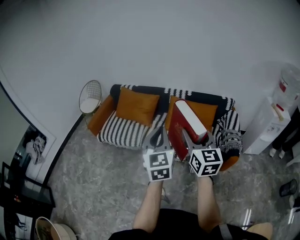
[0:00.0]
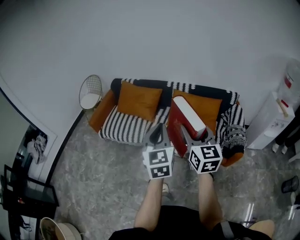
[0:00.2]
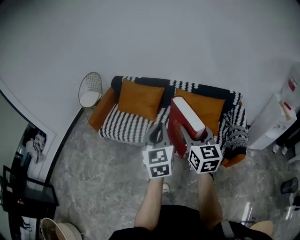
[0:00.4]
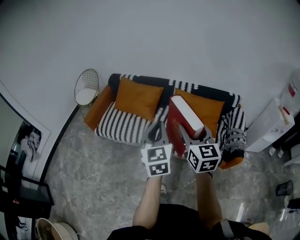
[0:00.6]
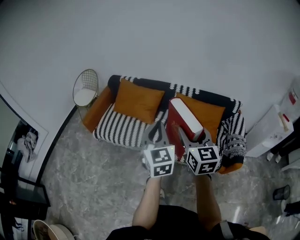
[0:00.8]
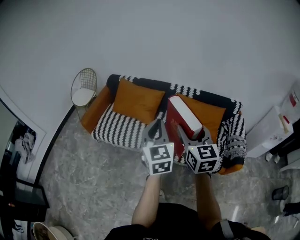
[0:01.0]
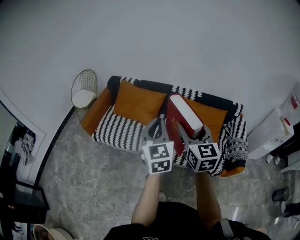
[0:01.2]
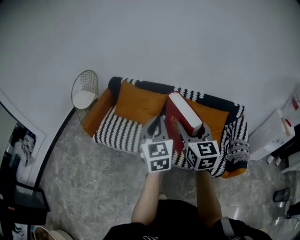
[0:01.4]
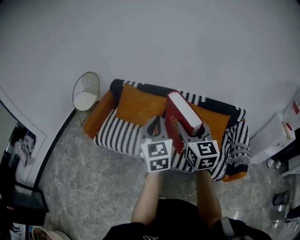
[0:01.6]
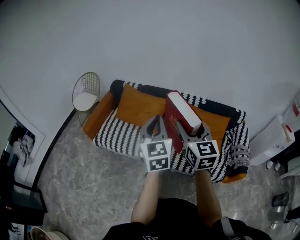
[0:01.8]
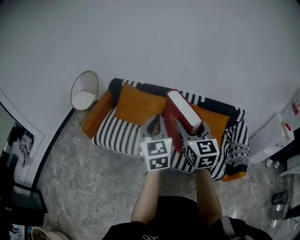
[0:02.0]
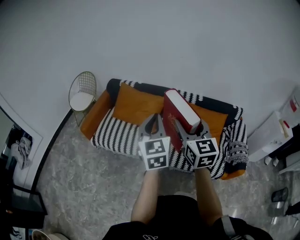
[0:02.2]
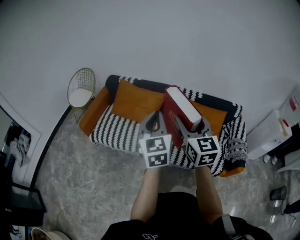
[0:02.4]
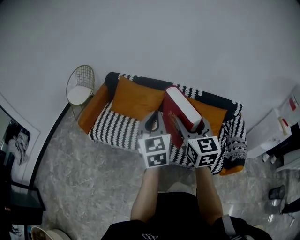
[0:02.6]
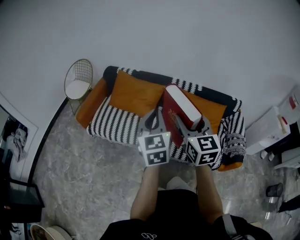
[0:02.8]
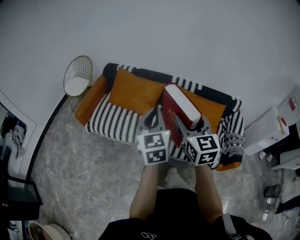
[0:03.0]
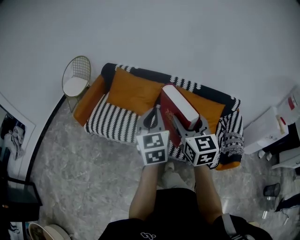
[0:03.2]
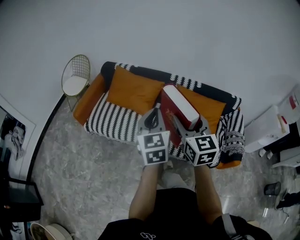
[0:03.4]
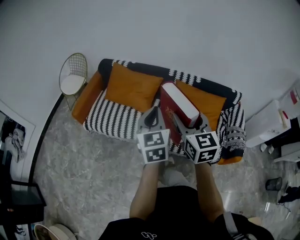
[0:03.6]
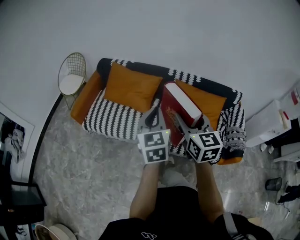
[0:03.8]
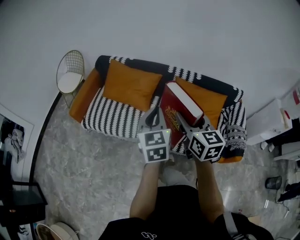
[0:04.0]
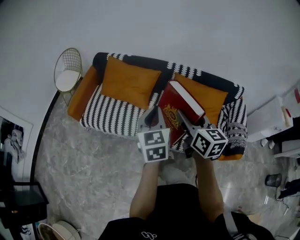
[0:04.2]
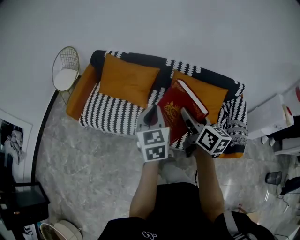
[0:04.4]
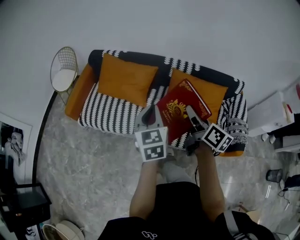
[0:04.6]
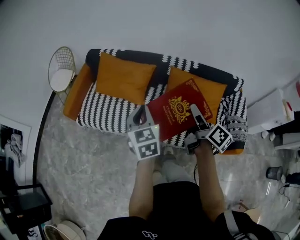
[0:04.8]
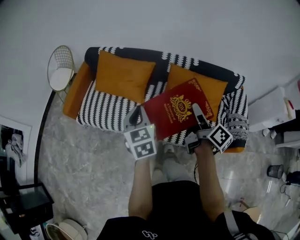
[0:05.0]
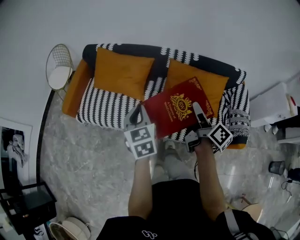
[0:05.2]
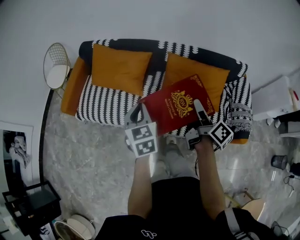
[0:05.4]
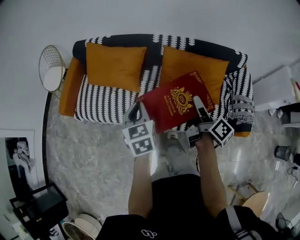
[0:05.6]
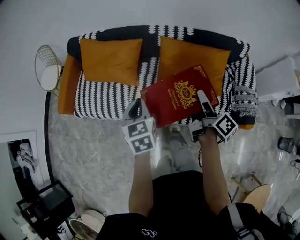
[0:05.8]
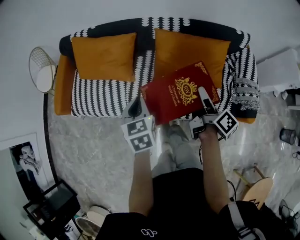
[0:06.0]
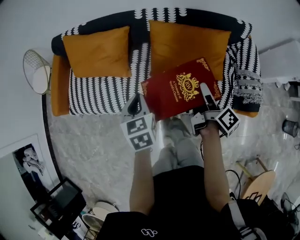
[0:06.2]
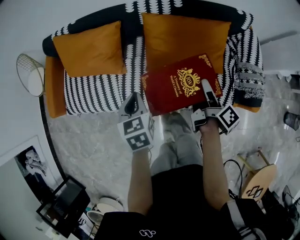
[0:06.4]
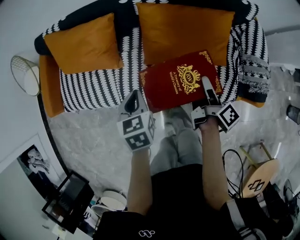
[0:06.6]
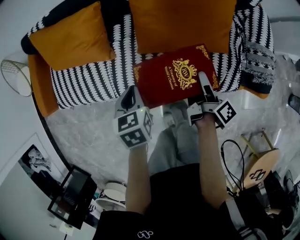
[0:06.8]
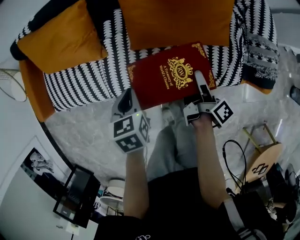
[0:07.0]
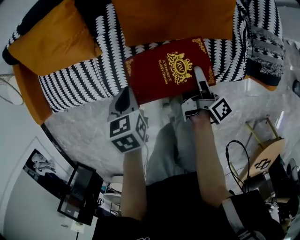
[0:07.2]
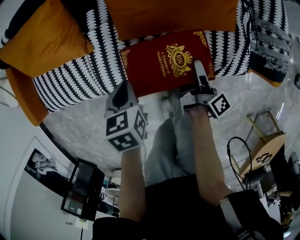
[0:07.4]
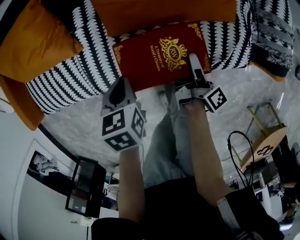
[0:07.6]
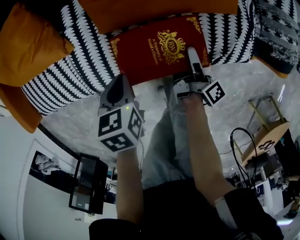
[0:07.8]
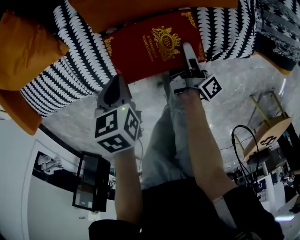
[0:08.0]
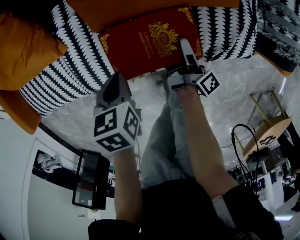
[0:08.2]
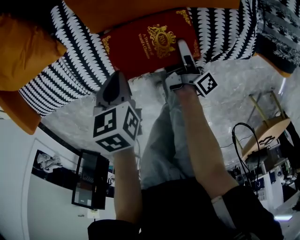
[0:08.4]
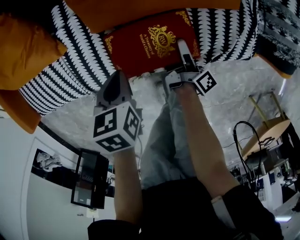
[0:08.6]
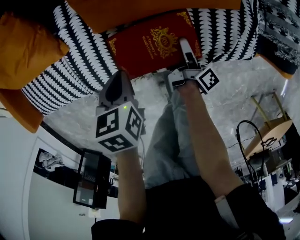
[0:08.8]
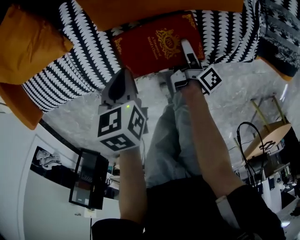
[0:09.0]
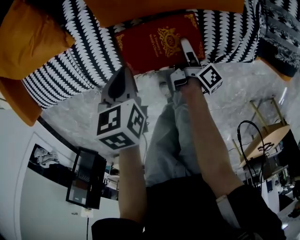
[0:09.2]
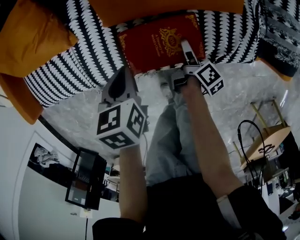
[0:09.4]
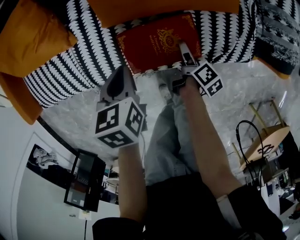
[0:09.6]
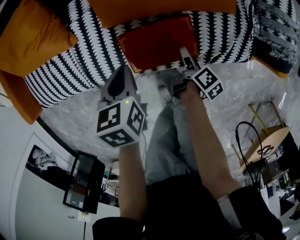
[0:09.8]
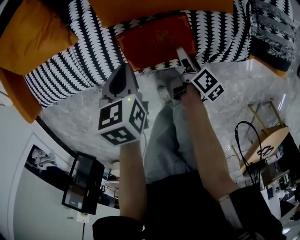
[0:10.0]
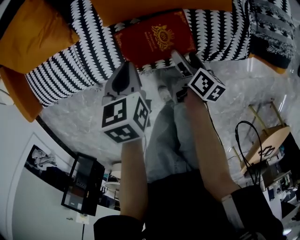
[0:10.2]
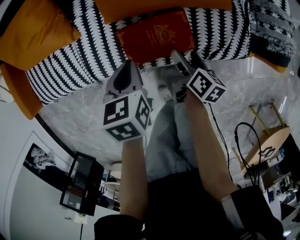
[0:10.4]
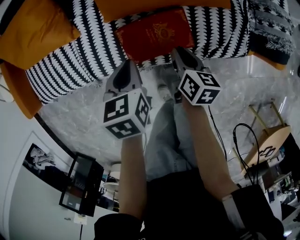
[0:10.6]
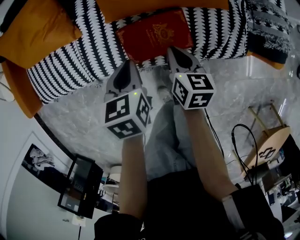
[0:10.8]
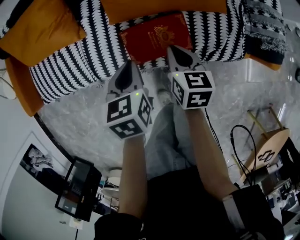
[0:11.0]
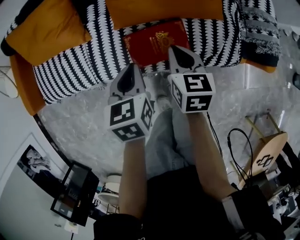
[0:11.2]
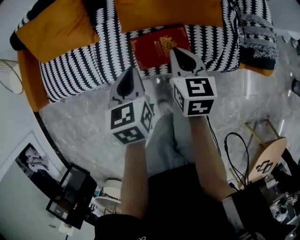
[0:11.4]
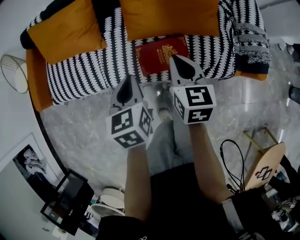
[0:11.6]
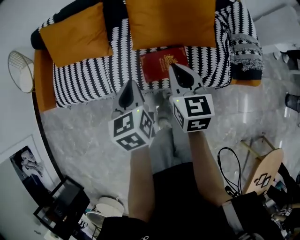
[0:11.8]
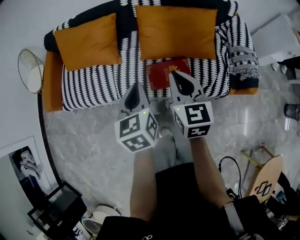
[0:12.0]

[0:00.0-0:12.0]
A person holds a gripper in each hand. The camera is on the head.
0:00.0 to 0:01.6: Both grippers travel together forward and to the left, approximately 30 cm.
0:01.6 to 0:03.0: The grippers make only small movements.
0:03.0 to 0:04.4: The left gripper shifts some 10 cm downward, forward and to the right; the right gripper heads to the right, downward and forward, covering some 15 cm, and turns by some 40 degrees.
0:04.4 to 0:06.0: The left gripper moves downward, roughly 15 cm, and swivels approximately 20 degrees; the right gripper goes roughly 25 cm downward and to the right, and twists approximately 40 degrees clockwise, seen from behind.
0:06.0 to 0:07.6: The two grippers go approximately 30 cm downward. The right gripper swivels roughly 30 degrees. Meanwhile the left gripper rotates roughly 30 degrees.
0:07.6 to 0:09.0: The right gripper is displaced downward by roughly 10 cm. The left gripper changes place by roughly 5 cm.
0:09.0 to 0:10.4: The right gripper moves upward and backward, roughly 10 cm, and changes its angle by roughly 40 degrees.
0:10.4 to 0:12.0: The two grippers go approximately 35 cm upward. The left gripper changes its angle by approximately 30 degrees. Meanwhile the right gripper rolls counterclockwise, seen from behind, by about 50 degrees, and closes.

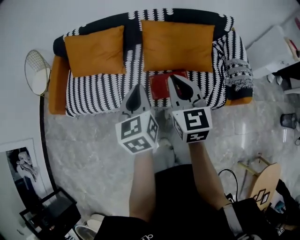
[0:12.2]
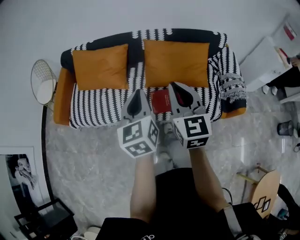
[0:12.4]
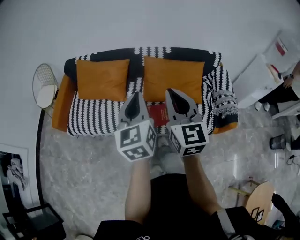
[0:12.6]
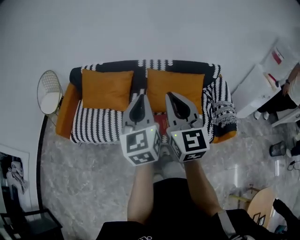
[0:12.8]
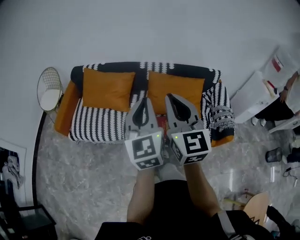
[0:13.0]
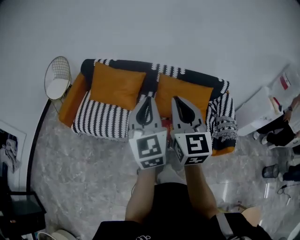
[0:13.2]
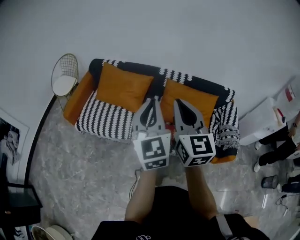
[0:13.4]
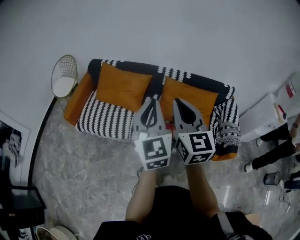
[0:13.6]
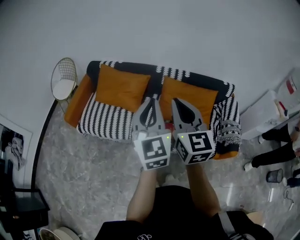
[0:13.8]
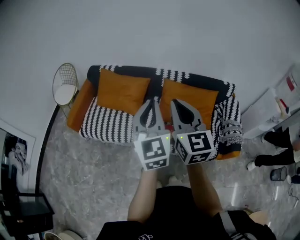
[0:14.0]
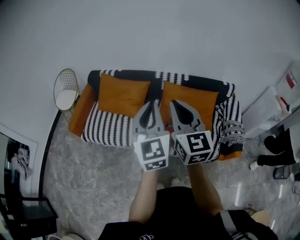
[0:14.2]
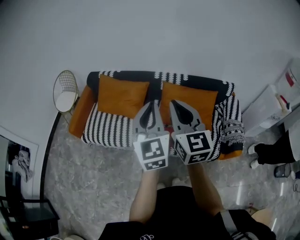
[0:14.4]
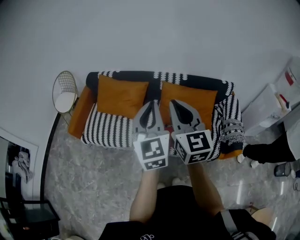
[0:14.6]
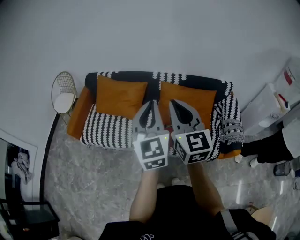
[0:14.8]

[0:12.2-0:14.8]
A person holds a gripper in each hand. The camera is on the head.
0:12.2 to 0:13.4: Both grippers move upward, approximately 20 cm. The left gripper rotates some 30 degrees.
0:13.4 to 0:14.8: The left gripper shifts some 5 cm to the right.

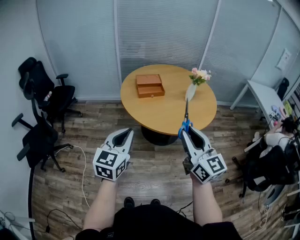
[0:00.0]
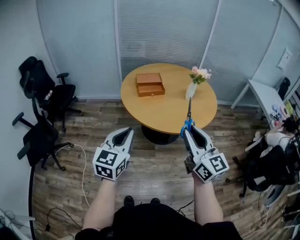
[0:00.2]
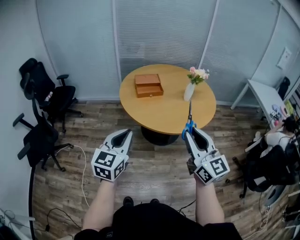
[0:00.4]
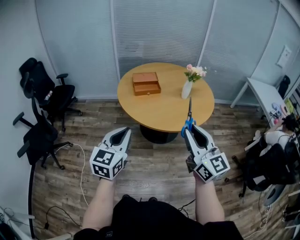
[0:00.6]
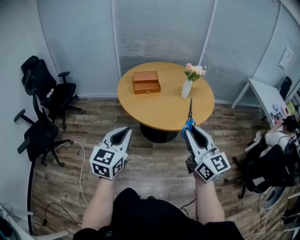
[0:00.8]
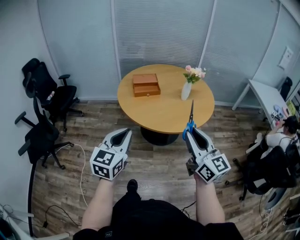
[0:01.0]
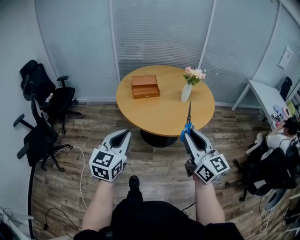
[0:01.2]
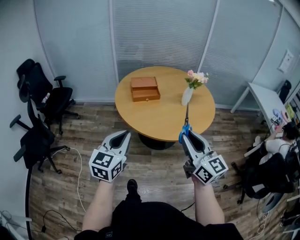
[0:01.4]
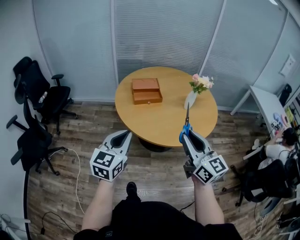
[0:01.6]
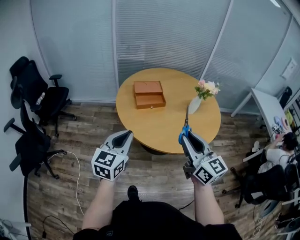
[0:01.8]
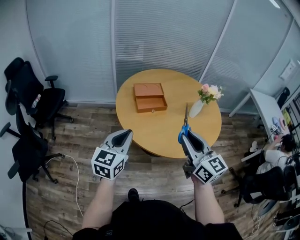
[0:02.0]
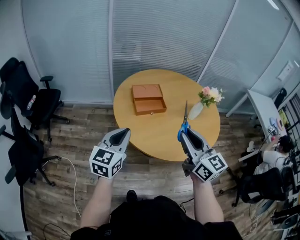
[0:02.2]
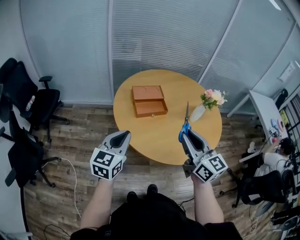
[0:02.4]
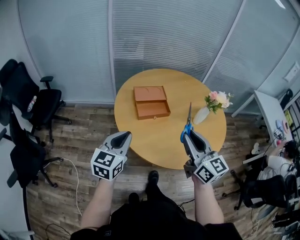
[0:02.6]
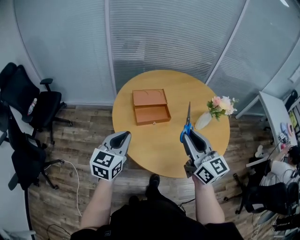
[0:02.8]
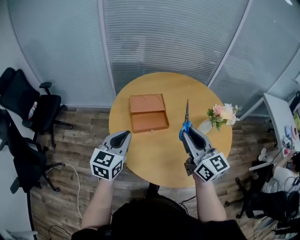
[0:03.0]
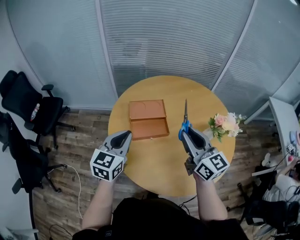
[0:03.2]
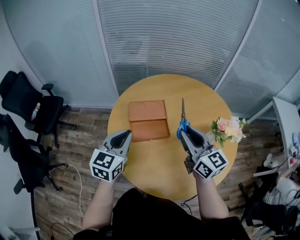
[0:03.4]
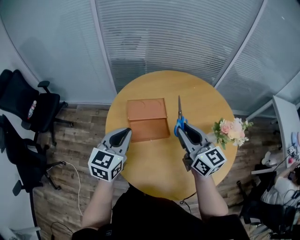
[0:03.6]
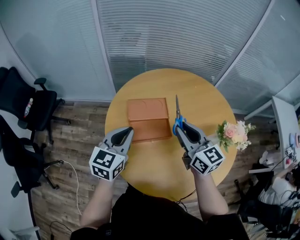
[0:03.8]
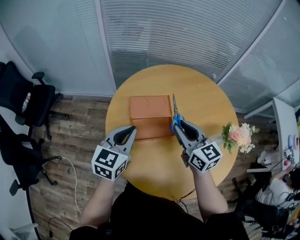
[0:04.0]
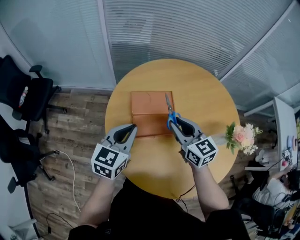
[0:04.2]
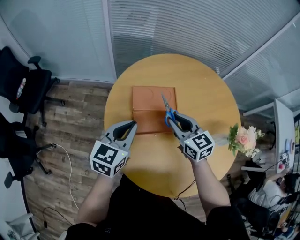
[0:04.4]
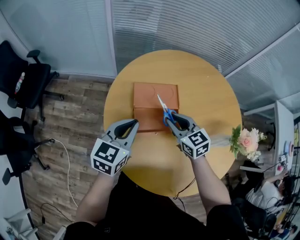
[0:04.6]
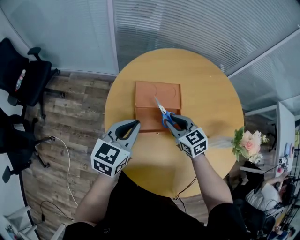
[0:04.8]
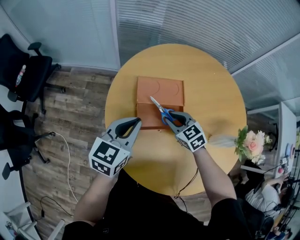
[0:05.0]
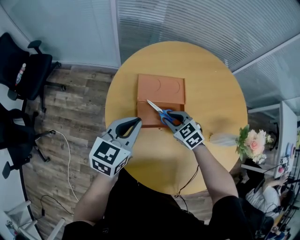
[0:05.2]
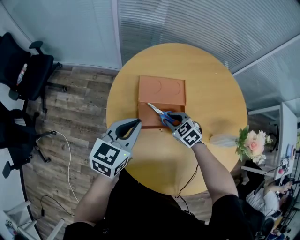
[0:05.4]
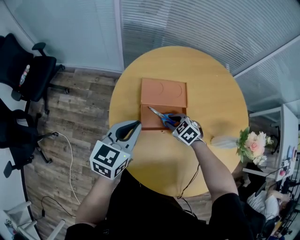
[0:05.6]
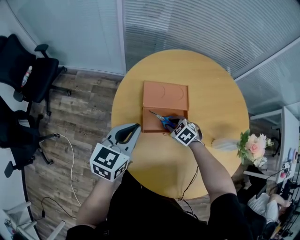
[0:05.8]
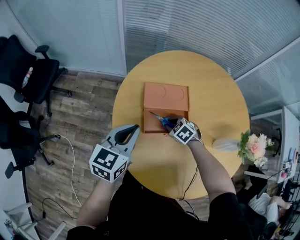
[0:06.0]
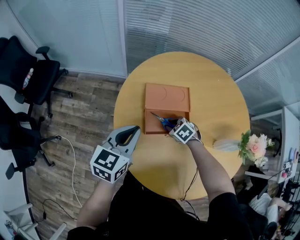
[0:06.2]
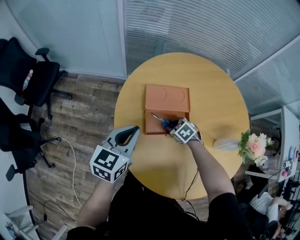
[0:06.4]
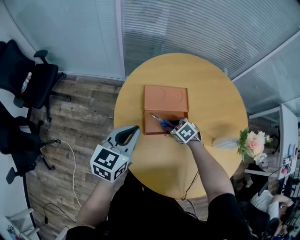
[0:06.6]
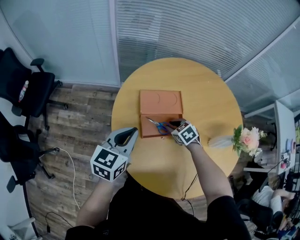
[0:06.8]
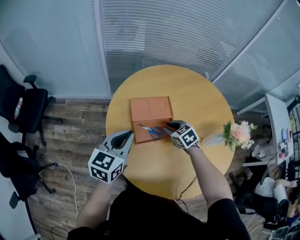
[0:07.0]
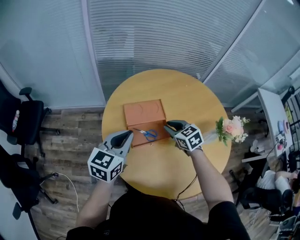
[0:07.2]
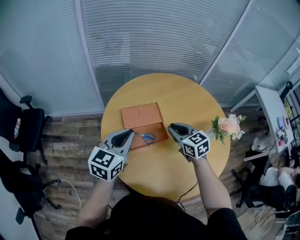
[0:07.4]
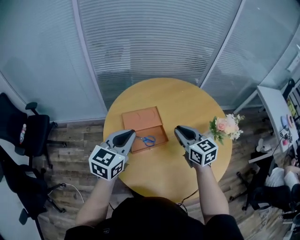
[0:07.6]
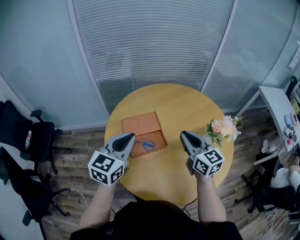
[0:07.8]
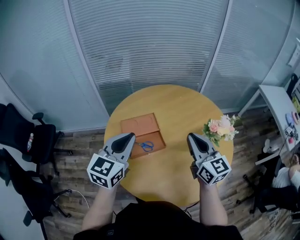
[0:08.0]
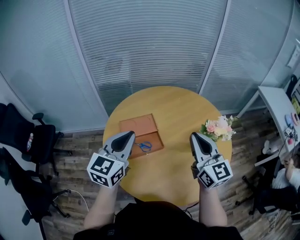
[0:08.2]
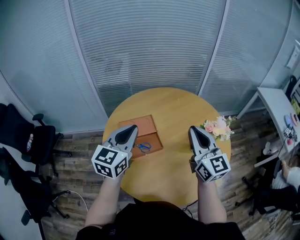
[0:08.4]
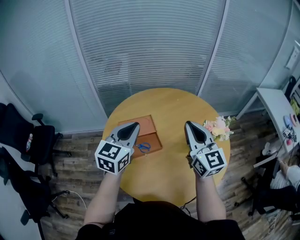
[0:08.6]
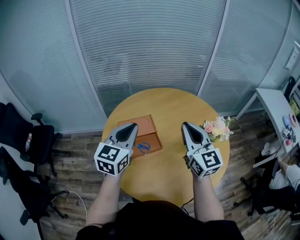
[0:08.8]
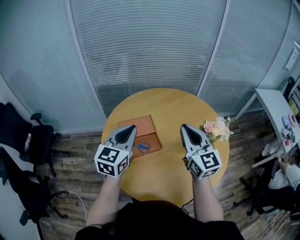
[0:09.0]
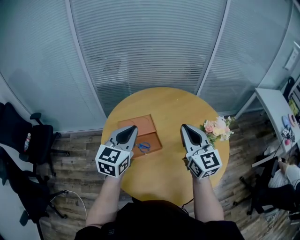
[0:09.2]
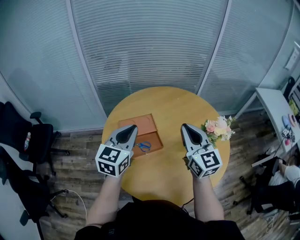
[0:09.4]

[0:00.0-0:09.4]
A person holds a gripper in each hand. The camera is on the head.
0:00.0 to 0:01.6: Both grippers move forward, about 10 cm.
0:01.6 to 0:03.2: The grippers both shift forward by some 40 cm.
0:03.2 to 0:04.8: The right gripper goes roughly 30 cm downward and forward, and tilts its fingers some 40 degrees downward. Meanwhile the left gripper is displaced forward and downward by about 15 cm.
0:04.8 to 0:06.2: The right gripper goes some 15 cm downward, and tilts its fingers roughly 30 degrees downward.
0:06.2 to 0:07.8: The right gripper heads upward, covering roughly 35 cm, and angles its fingers upward, by roughly 60 degrees, while the left gripper is displaced upward by some 15 cm, and changes its angle by approximately 20 degrees.
0:07.8 to 0:09.4: The right gripper shifts some 5 cm upward.
